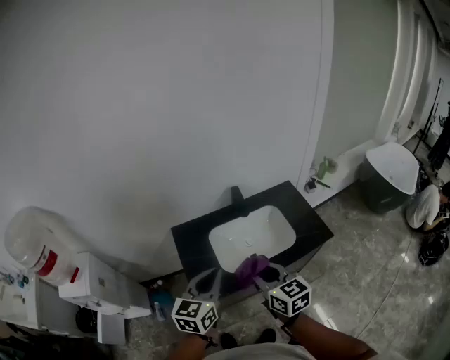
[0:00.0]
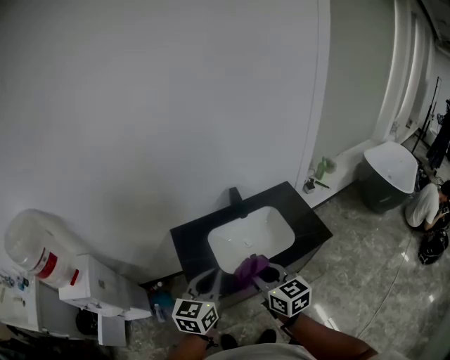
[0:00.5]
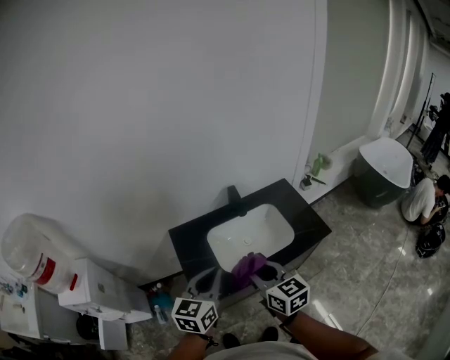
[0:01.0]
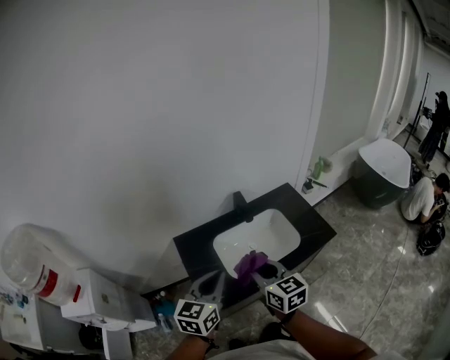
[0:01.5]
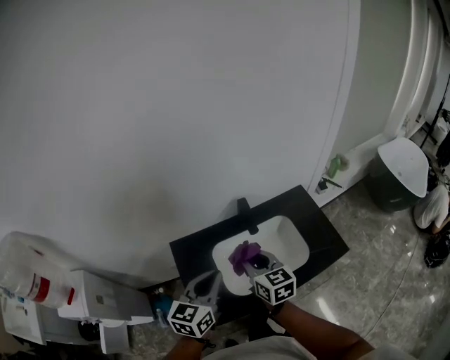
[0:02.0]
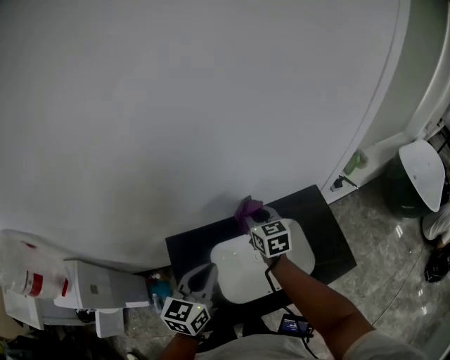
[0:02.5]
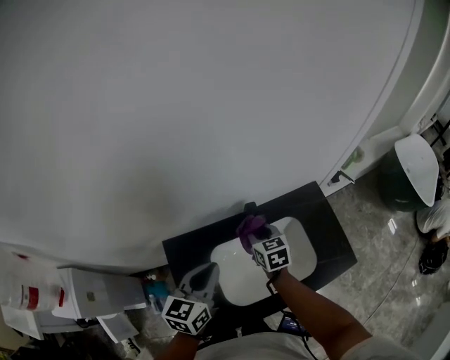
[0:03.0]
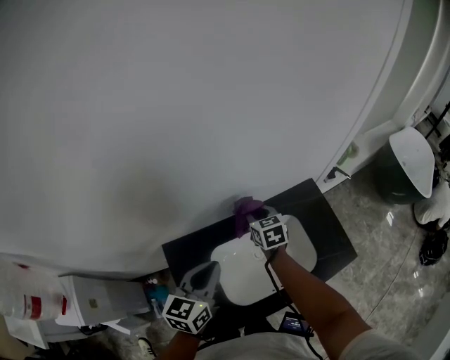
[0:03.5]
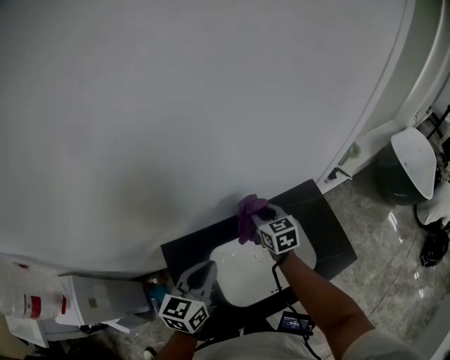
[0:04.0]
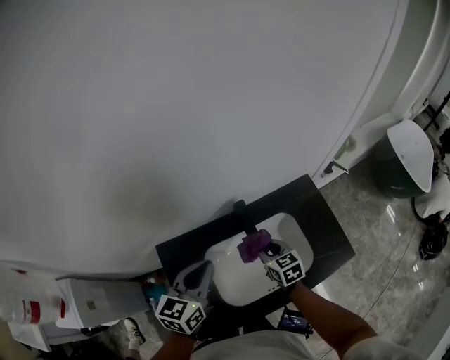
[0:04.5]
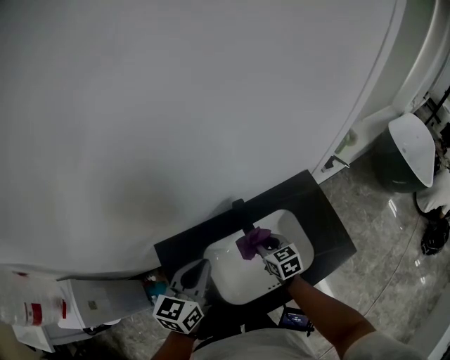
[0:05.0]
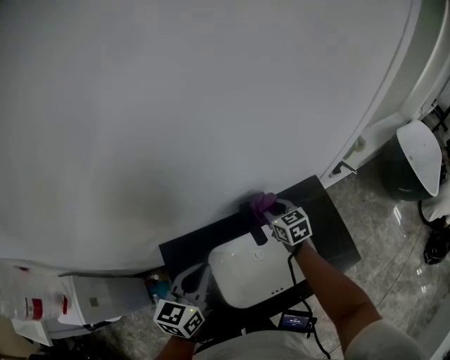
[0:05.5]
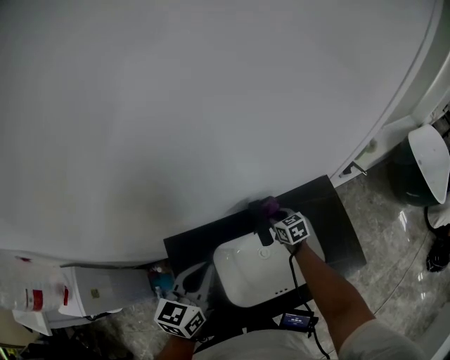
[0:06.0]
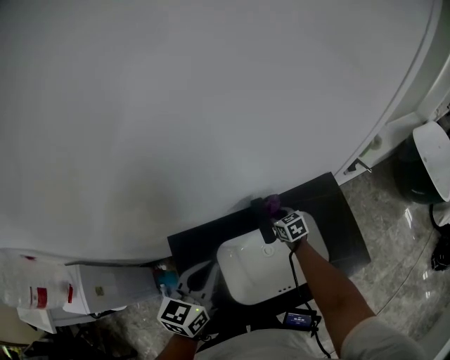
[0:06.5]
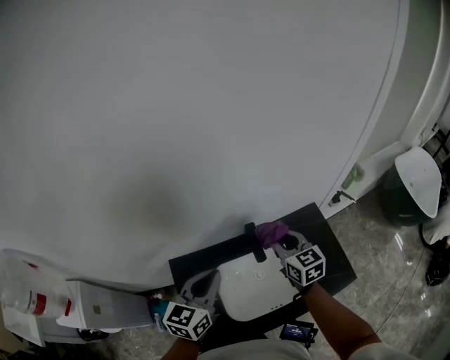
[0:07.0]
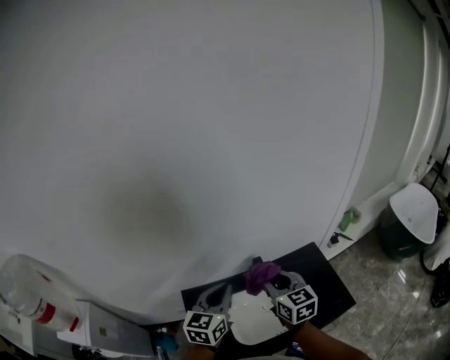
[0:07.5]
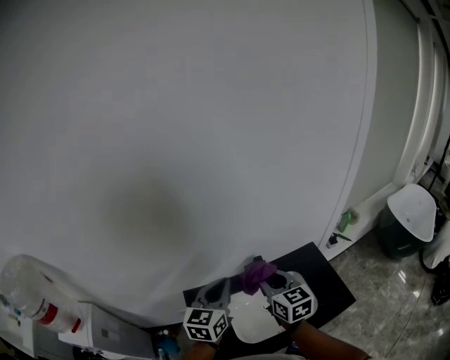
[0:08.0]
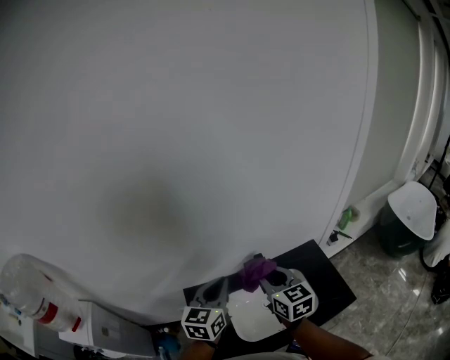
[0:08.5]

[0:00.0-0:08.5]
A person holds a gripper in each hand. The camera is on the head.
0:00.0 to 0:02.0: Both grippers travel together forward, some 20 cm.
0:02.0 to 0:04.0: The right gripper is displaced forward by approximately 25 cm. The left gripper travels forward by roughly 15 cm.
0:04.0 to 0:06.5: The right gripper goes up and down, about 20 cm each way, reversing 2 times.
0:06.5 to 0:08.5: The left gripper travels upward by some 15 cm; the right gripper goes roughly 40 cm upward and backward, and rotates about 30 degrees.

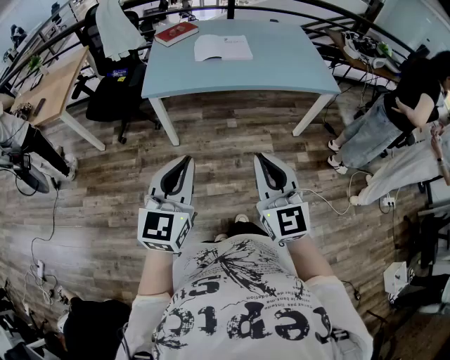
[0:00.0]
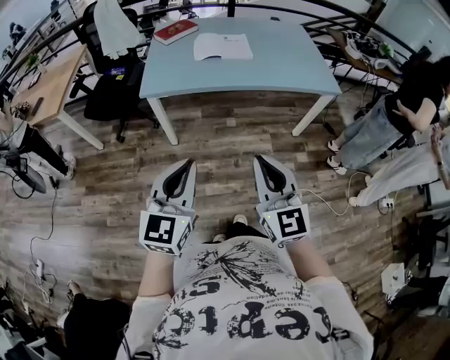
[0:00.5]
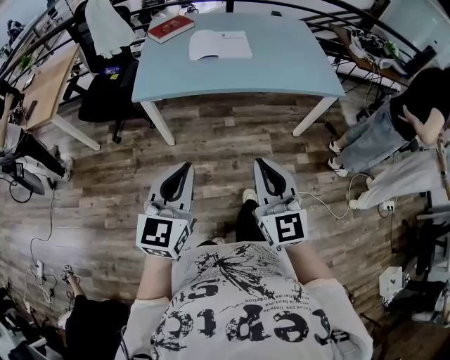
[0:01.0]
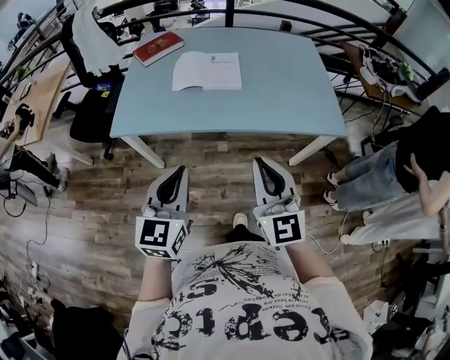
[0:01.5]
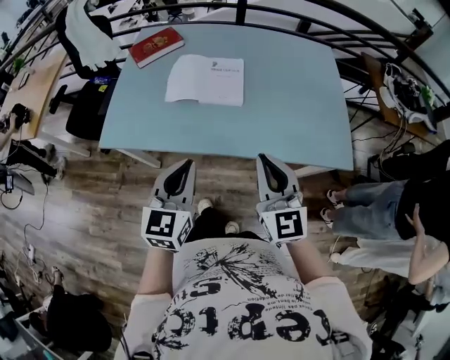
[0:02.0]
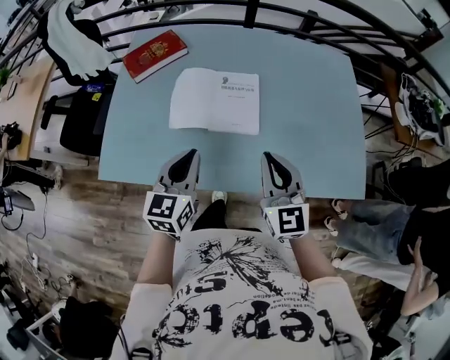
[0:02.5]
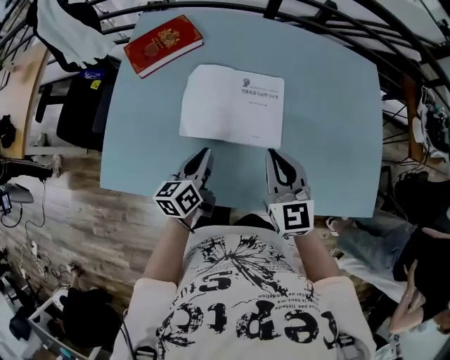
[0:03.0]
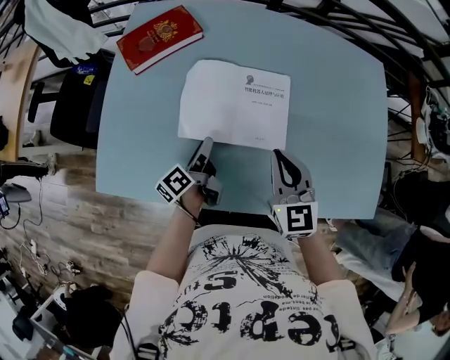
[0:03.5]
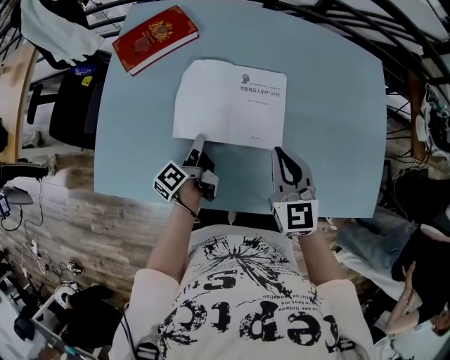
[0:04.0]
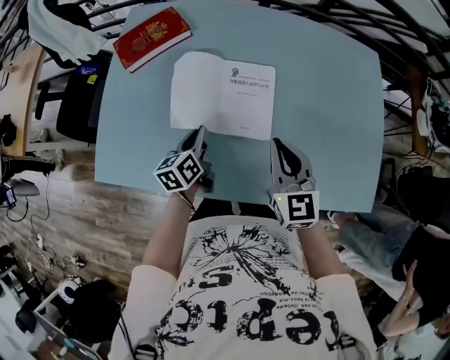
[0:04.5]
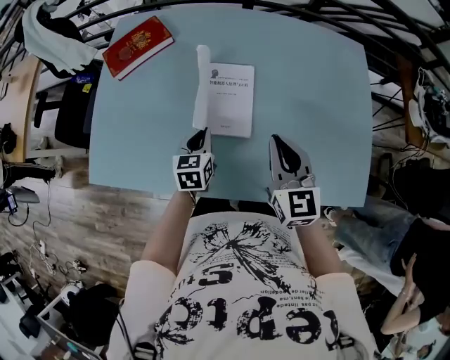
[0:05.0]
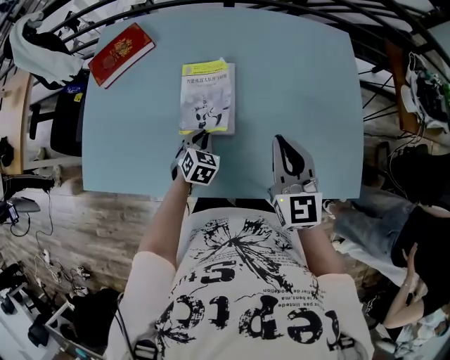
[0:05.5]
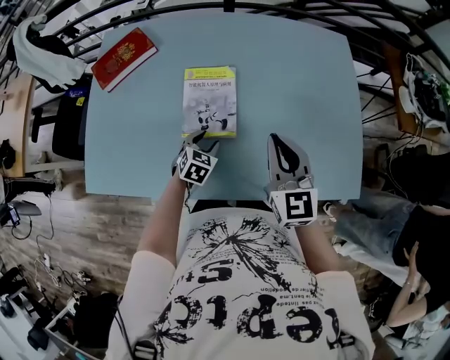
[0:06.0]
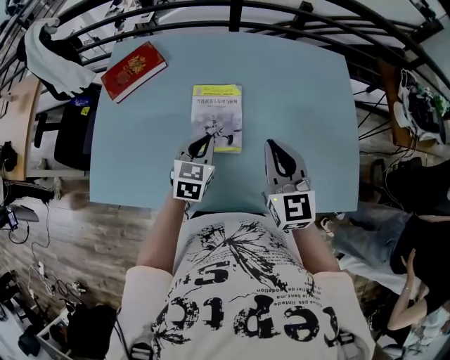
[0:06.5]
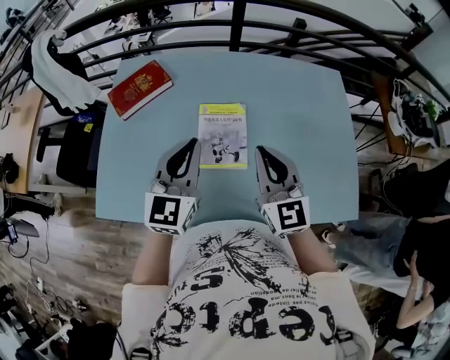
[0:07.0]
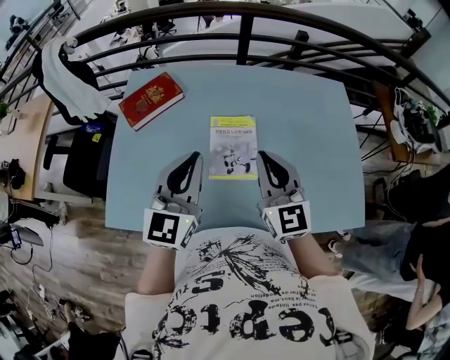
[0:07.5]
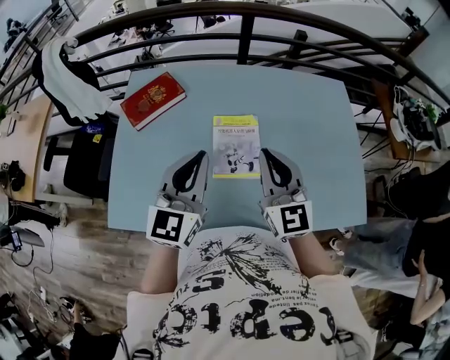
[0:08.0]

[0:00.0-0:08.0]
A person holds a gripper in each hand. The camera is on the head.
0:00.0 to 0:02.0: Both grippers are carried forward and to the right, some 50 cm.
0:02.0 to 0:04.0: Both grippers travel together forward and downward, about 40 cm. The left gripper twists about 80 degrees counterclockwise, seen from behind, and opens, then closes once more.
0:04.0 to 0:06.0: The right gripper travels to the right and upward by about 15 cm. Meanwhile the left gripper goes approximately 20 cm to the right, rolls clockwise, seen from behind, by approximately 90 degrees, and opens up.
0:06.0 to 0:08.0: The right gripper heads to the left and upward, covering roughly 15 cm, while the left gripper is displaced upward by some 35 cm, angles its fingers upward, by approximately 50 degrees, and closes.

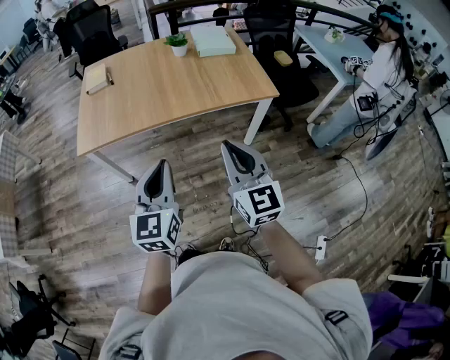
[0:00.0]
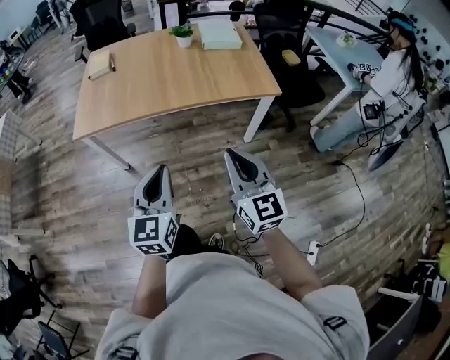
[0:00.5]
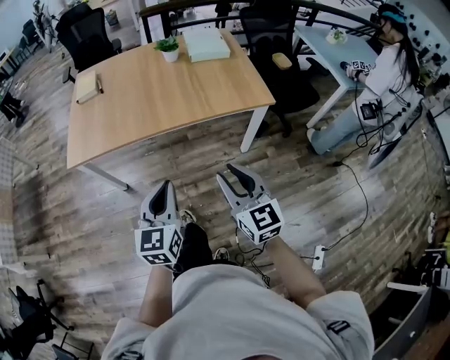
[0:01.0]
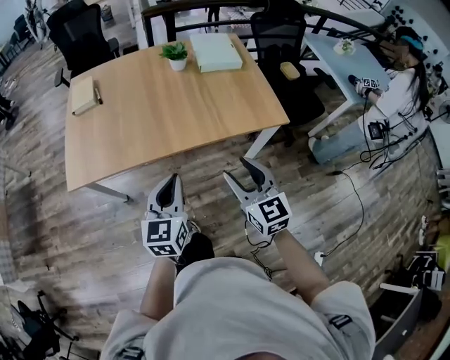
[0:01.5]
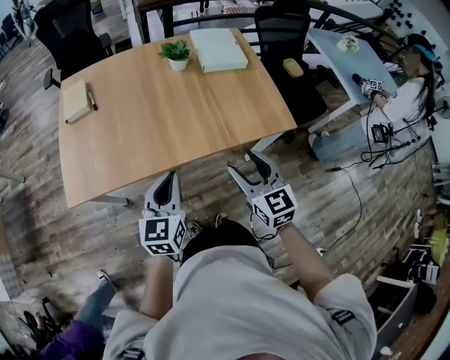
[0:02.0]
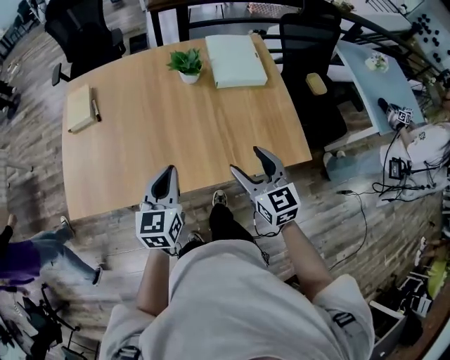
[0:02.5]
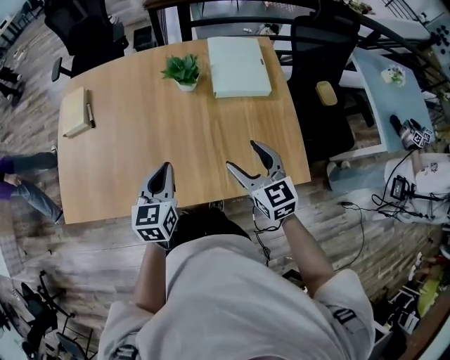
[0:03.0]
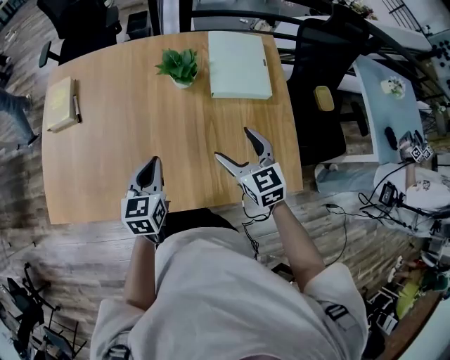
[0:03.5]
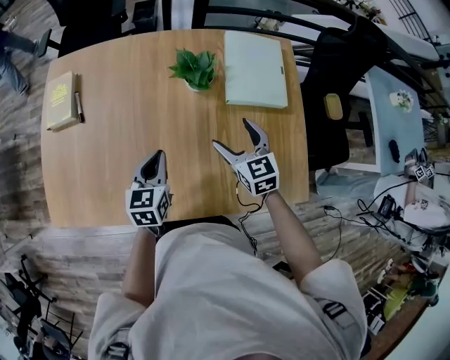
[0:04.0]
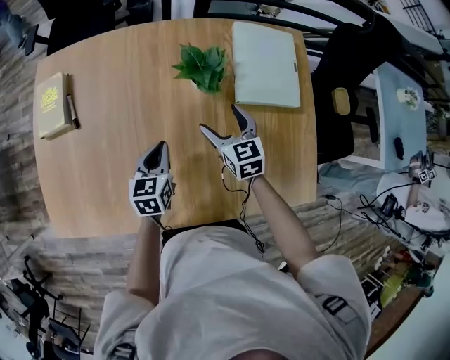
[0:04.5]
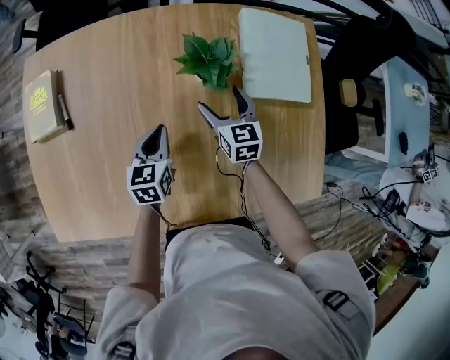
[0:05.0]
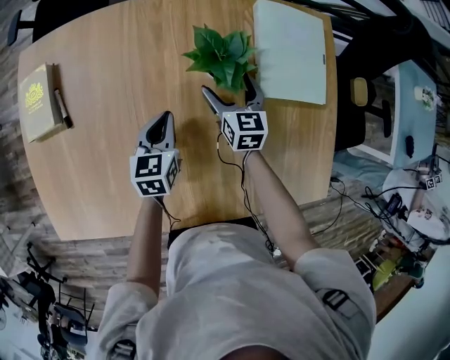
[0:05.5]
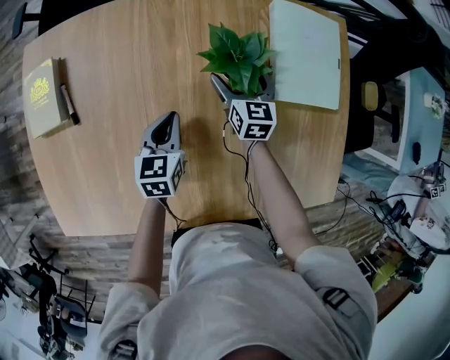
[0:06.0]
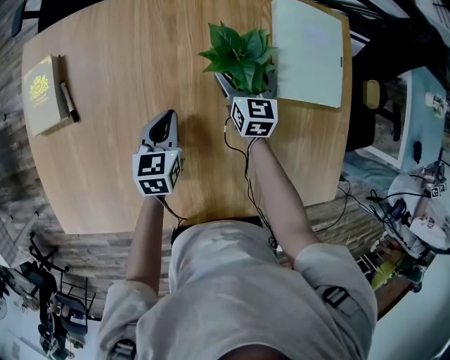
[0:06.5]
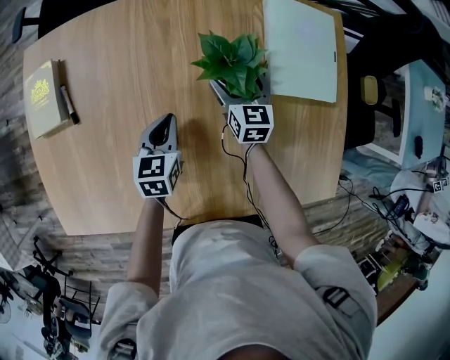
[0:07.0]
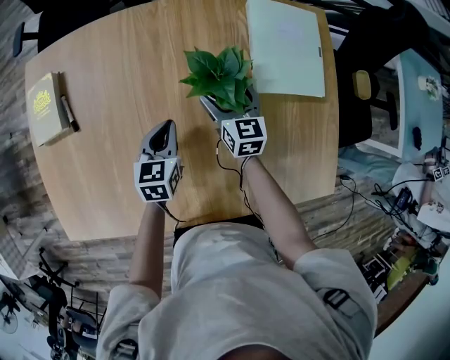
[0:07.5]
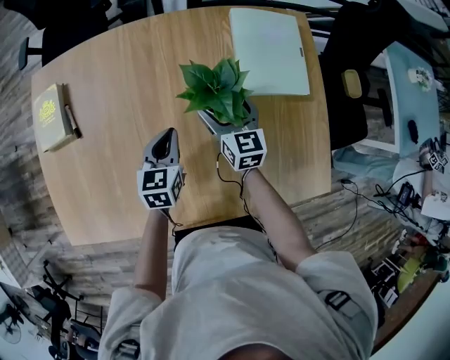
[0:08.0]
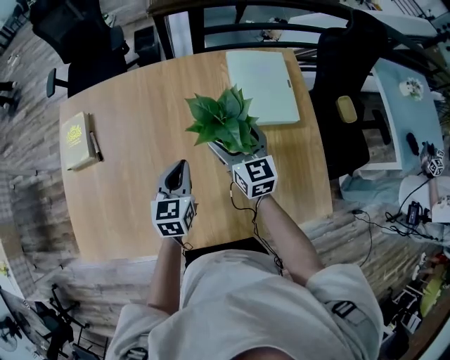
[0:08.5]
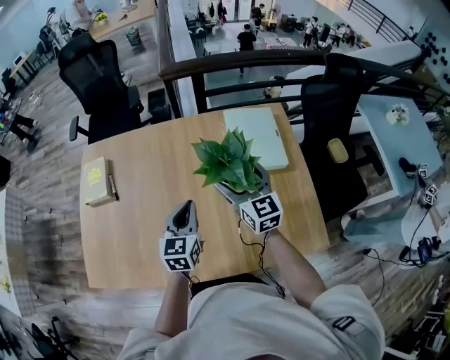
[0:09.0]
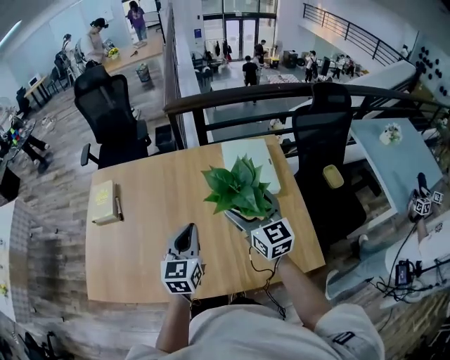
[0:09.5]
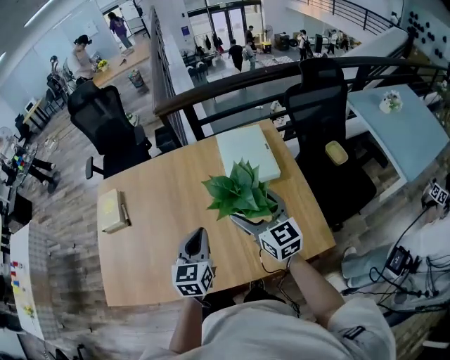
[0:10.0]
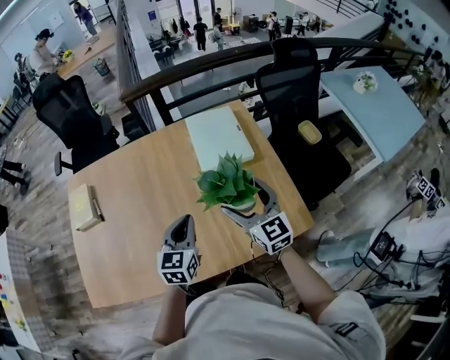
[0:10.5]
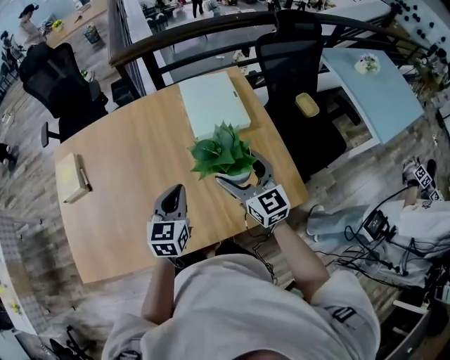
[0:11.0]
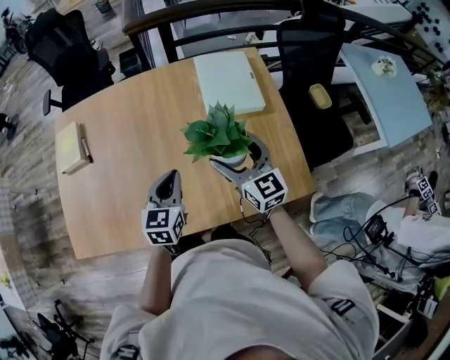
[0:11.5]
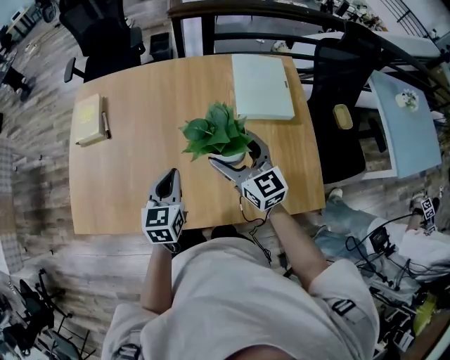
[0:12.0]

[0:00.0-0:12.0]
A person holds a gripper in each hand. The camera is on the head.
0:00.0 to 0:02.0: The right gripper travels forward and downward by about 30 cm, and opens its fingers, while the left gripper heads forward, covering about 30 cm.
0:02.0 to 0:04.0: Both grippers move forward, approximately 35 cm. The left gripper swivels some 20 degrees.
0:04.0 to 0:06.0: Both grippers move forward and downward, approximately 20 cm. The right gripper rotates some 20 degrees.
0:06.0 to 0:08.0: The left gripper heads upward, covering some 5 cm. The right gripper travels backward and upward by some 10 cm.
0:08.0 to 0:10.0: The grippers both shift upward, backward and to the right by roughly 25 cm.
0:10.0 to 0:12.0: The right gripper goes about 10 cm to the left; the left gripper moves to the left and downward, approximately 15 cm.
